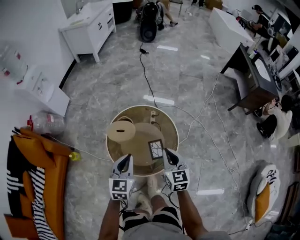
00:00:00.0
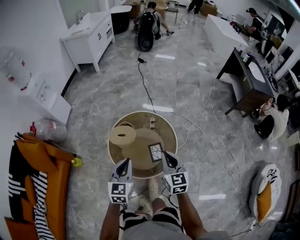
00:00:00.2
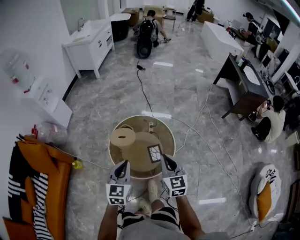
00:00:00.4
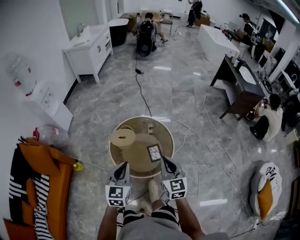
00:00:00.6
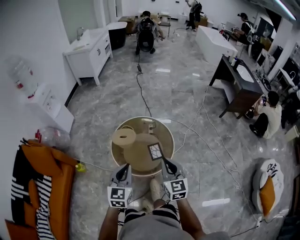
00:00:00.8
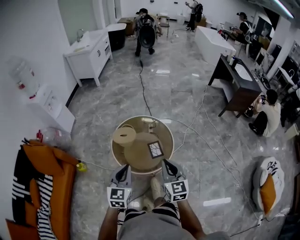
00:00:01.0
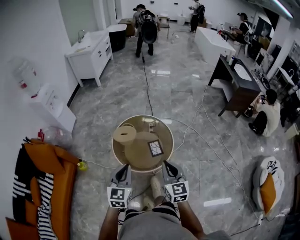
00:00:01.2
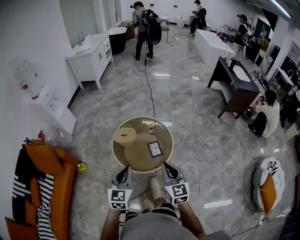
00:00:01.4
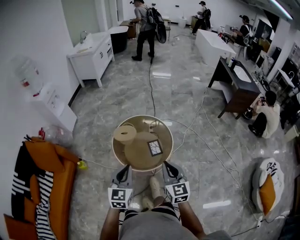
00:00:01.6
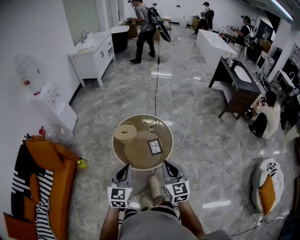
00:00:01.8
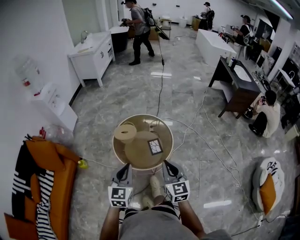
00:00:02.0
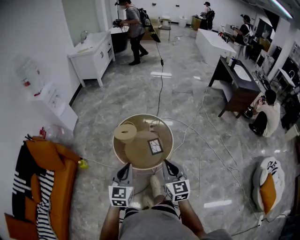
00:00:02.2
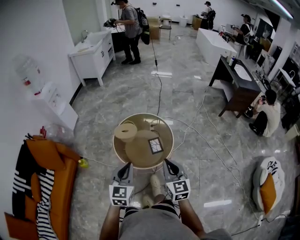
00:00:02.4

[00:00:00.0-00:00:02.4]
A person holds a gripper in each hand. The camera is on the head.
00:00:00.0 to 00:00:01.2: The grippers both shift backward and upward by approximately 25 cm.
00:00:01.2 to 00:00:02.4: There are only small adjustments of the grippers.

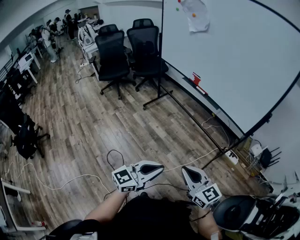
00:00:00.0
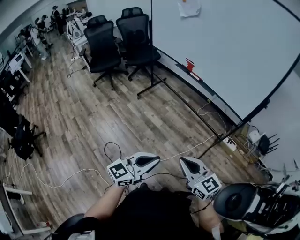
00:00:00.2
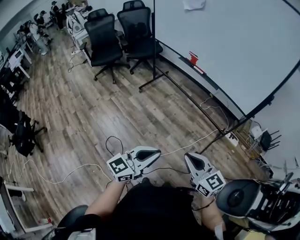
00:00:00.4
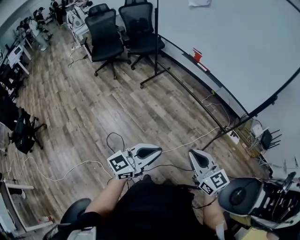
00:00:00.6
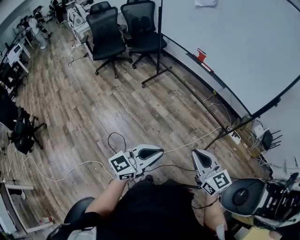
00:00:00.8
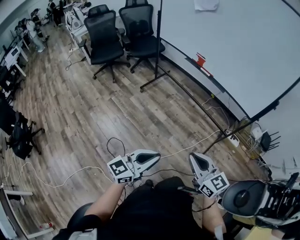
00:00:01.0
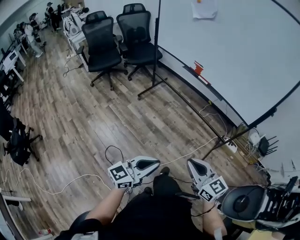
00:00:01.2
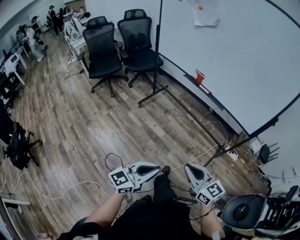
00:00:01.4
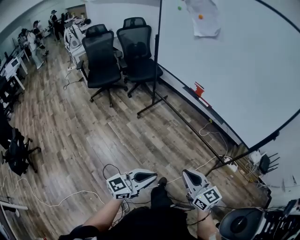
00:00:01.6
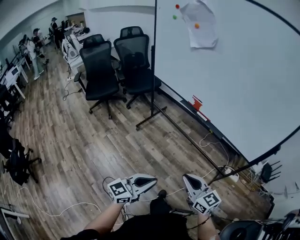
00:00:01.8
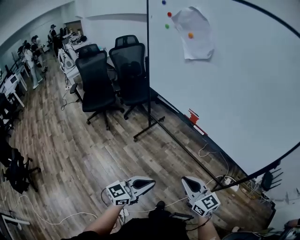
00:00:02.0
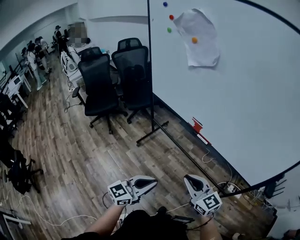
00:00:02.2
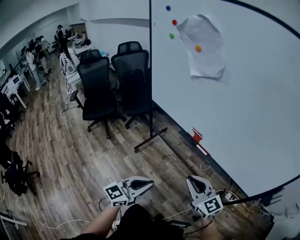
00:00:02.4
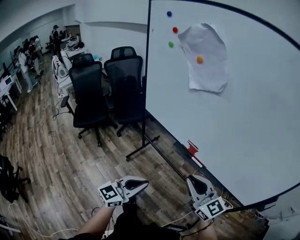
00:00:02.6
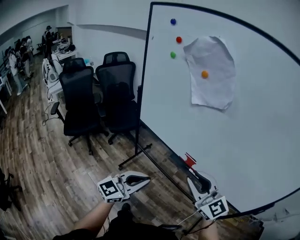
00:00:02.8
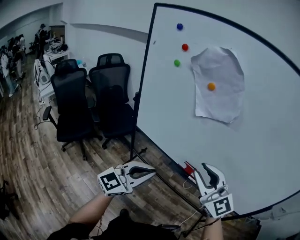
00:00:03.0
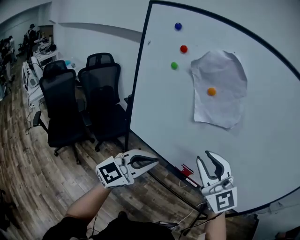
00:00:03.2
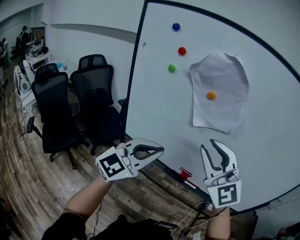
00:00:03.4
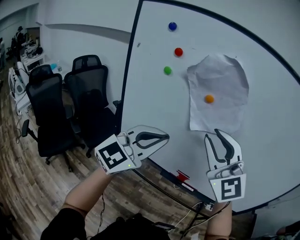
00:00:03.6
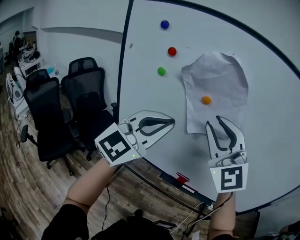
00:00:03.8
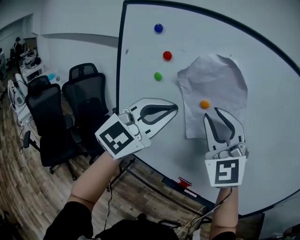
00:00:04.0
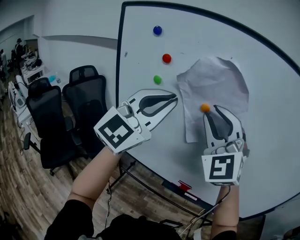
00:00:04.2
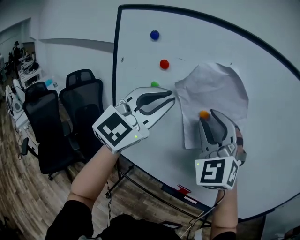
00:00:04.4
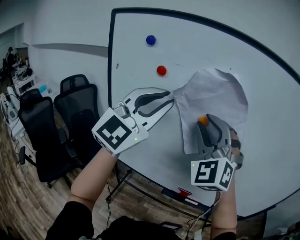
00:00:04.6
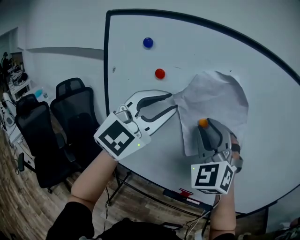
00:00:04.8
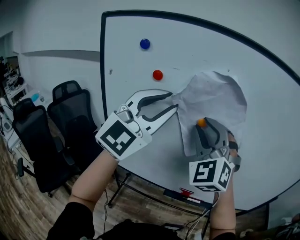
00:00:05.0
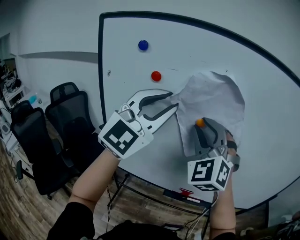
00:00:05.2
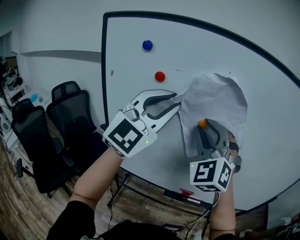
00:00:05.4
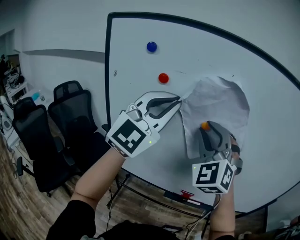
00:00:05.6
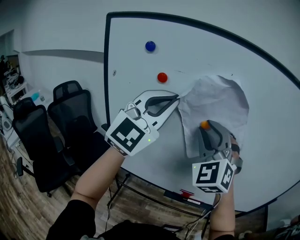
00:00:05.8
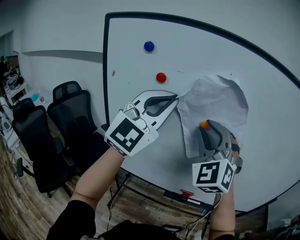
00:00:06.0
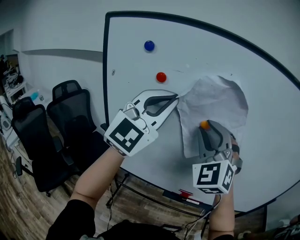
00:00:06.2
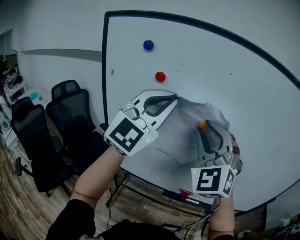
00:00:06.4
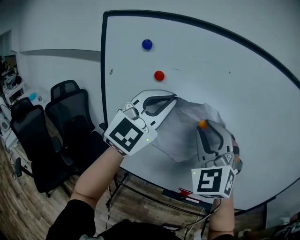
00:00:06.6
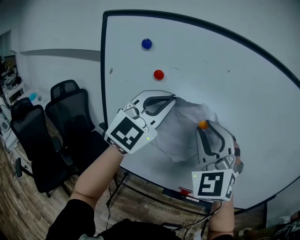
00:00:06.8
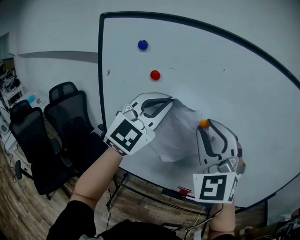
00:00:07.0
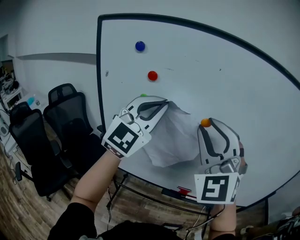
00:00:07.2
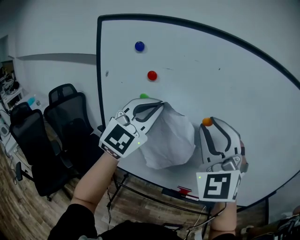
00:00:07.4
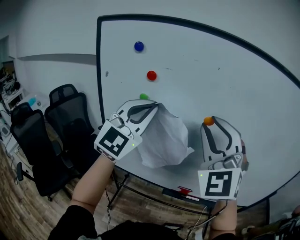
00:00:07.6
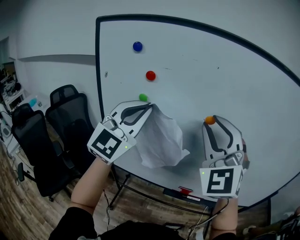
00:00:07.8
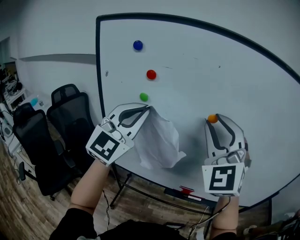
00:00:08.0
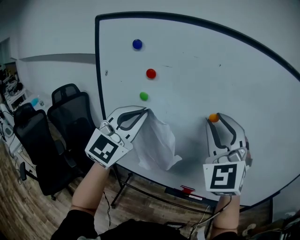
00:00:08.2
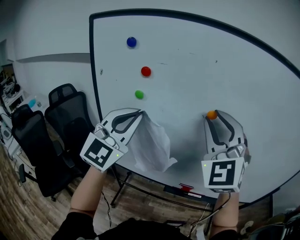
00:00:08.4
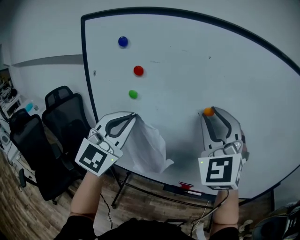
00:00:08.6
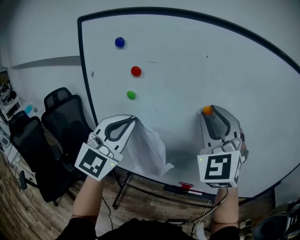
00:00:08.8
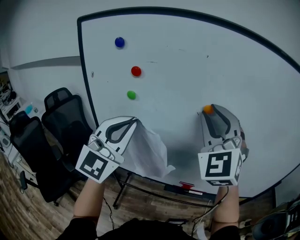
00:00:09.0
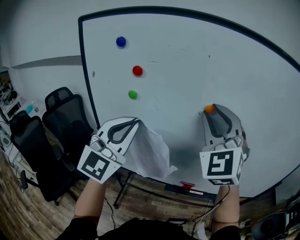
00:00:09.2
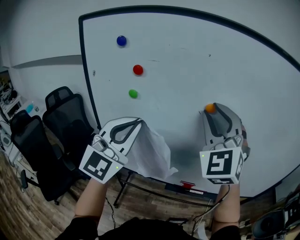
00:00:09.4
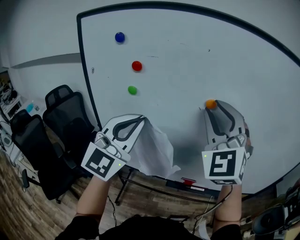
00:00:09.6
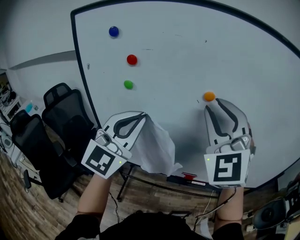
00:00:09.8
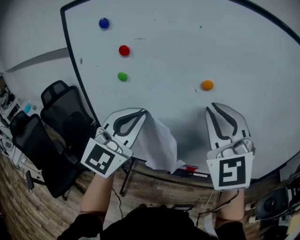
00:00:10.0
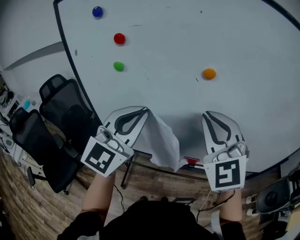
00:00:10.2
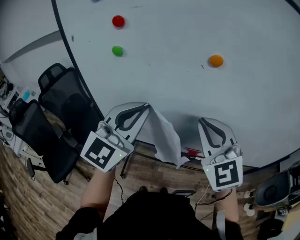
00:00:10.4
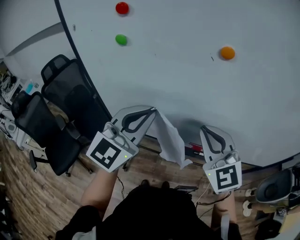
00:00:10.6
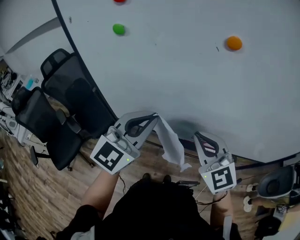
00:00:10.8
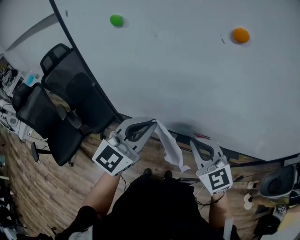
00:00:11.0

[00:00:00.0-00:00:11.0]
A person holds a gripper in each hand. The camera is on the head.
00:00:00.0 to 00:00:01.6: Both grippers travel together forward and to the left, roughly 20 cm.
00:00:01.6 to 00:00:03.2: The pair of grippers is taken forward, approximately 60 cm. The right gripper is displaced upward by some 30 cm, rolls counterclockwise, seen from behind, by some 40 degrees, and opens up. Meanwhile the left gripper rotates about 30 degrees.
00:00:03.2 to 00:00:04.8: The right gripper heads forward, upward and to the left, covering some 25 cm, and turns by roughly 50 degrees. The left gripper moves upward and forward, approximately 30 cm, changes its angle by about 30 degrees, and opens up.
00:00:04.8 to 00:00:06.2: The left gripper closes its fingers.
00:00:06.2 to 00:00:07.8: The right gripper shifts by some 5 cm. Meanwhile the left gripper moves about 5 cm.
00:00:07.8 to 00:00:09.4: The right gripper ends up about 5 cm from where it was.
00:00:09.4 to 00:00:11.0: The right gripper goes about 30 cm downward, rotates roughly 50 degrees, and closes up; the left gripper shifts approximately 20 cm downward, and changes its angle by approximately 30 degrees.

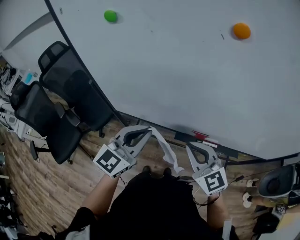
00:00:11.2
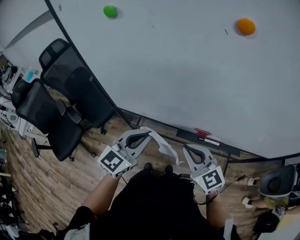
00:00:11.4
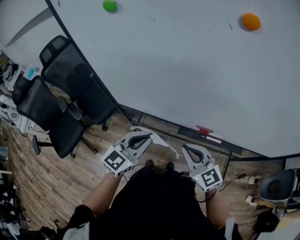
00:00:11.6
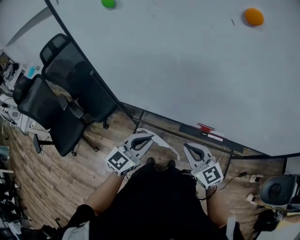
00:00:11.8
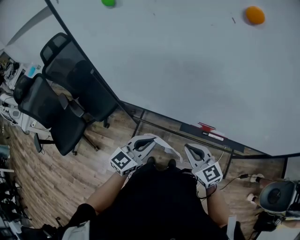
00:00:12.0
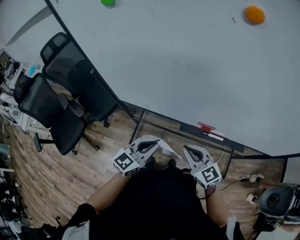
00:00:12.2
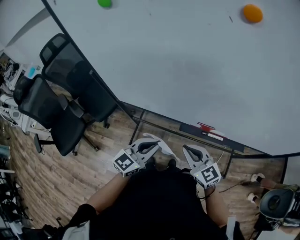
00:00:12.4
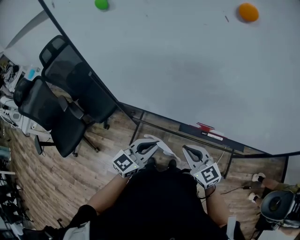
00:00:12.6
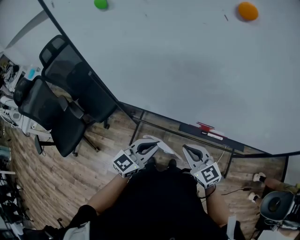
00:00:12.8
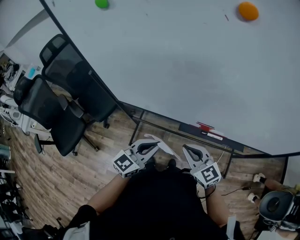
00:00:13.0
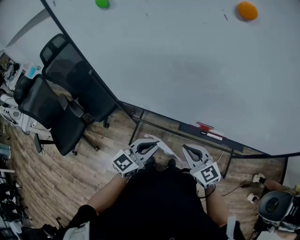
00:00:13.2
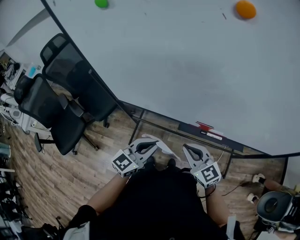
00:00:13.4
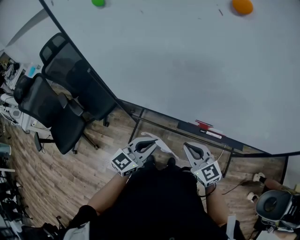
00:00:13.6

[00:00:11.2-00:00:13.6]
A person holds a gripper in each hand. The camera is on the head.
00:00:11.2 to 00:00:12.4: Both grippers travel together downward, some 15 cm.
00:00:12.4 to 00:00:13.6: Both grippers stay about where they are.

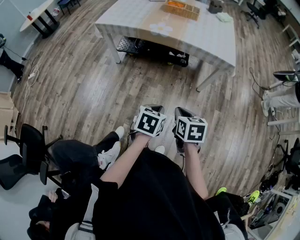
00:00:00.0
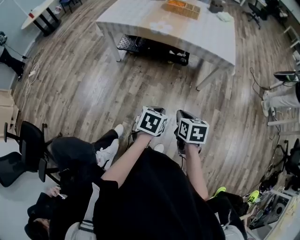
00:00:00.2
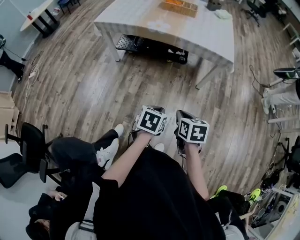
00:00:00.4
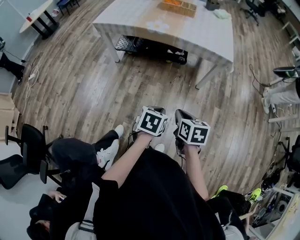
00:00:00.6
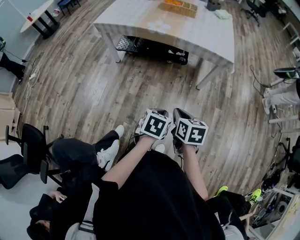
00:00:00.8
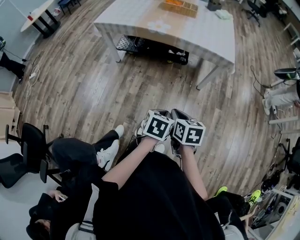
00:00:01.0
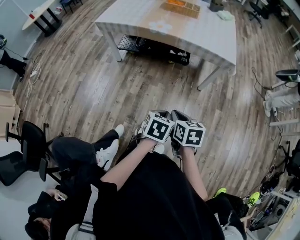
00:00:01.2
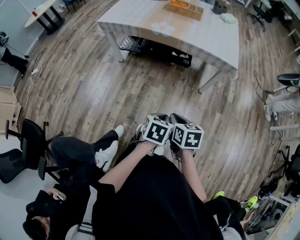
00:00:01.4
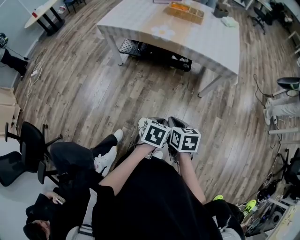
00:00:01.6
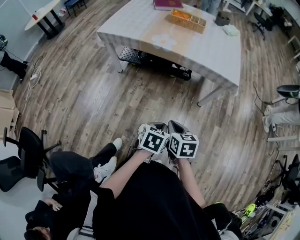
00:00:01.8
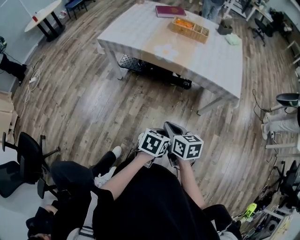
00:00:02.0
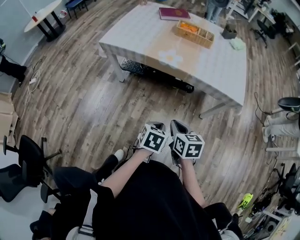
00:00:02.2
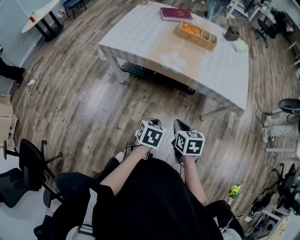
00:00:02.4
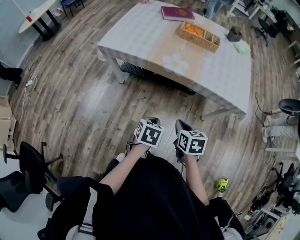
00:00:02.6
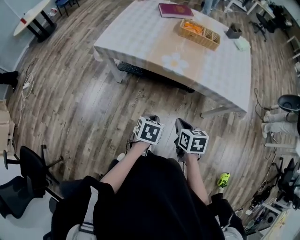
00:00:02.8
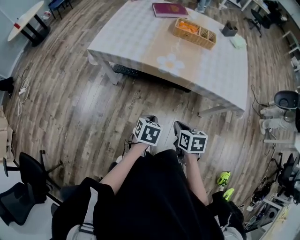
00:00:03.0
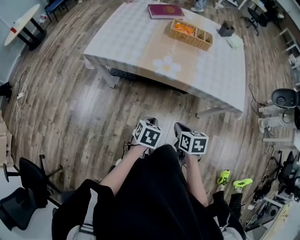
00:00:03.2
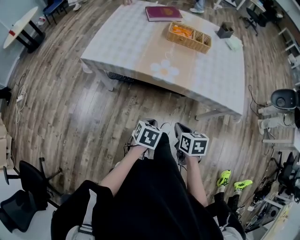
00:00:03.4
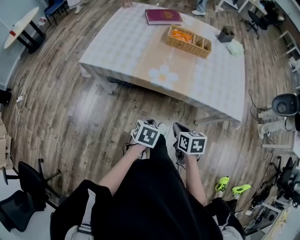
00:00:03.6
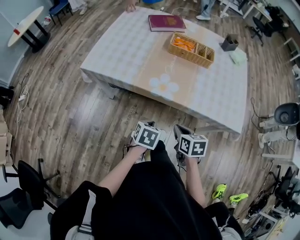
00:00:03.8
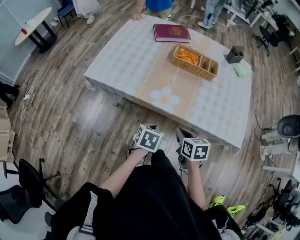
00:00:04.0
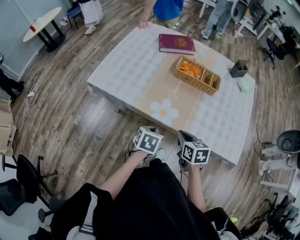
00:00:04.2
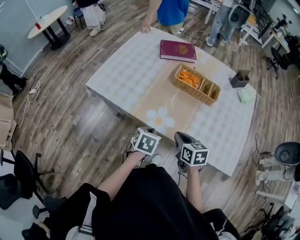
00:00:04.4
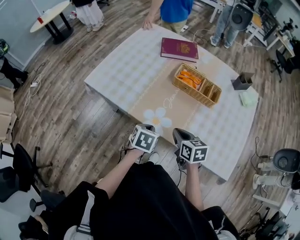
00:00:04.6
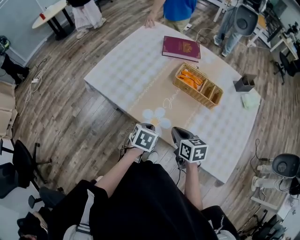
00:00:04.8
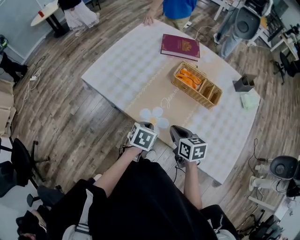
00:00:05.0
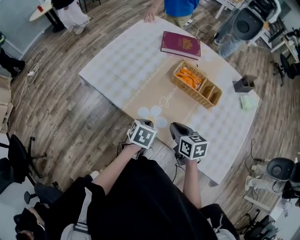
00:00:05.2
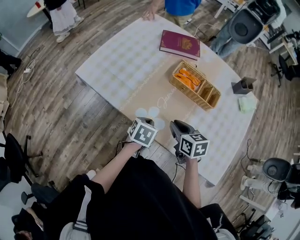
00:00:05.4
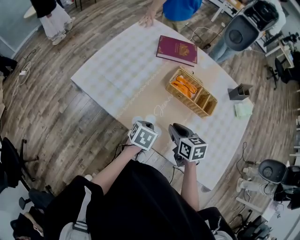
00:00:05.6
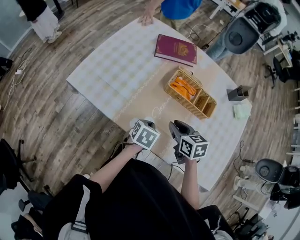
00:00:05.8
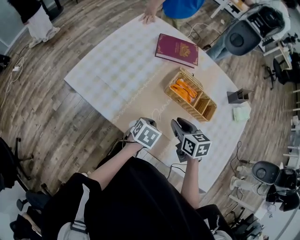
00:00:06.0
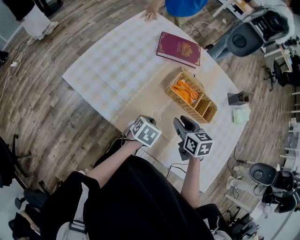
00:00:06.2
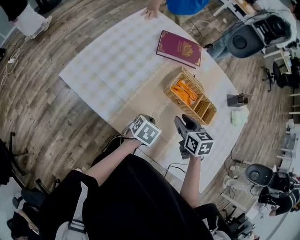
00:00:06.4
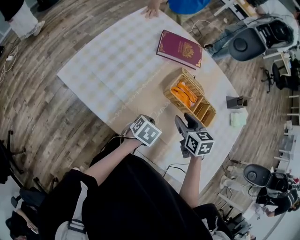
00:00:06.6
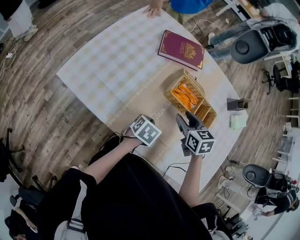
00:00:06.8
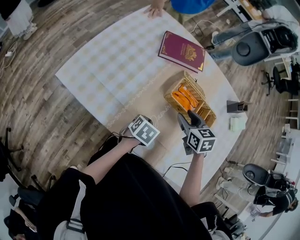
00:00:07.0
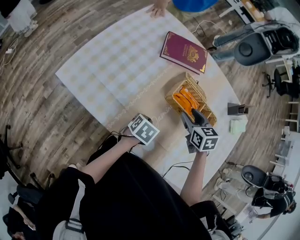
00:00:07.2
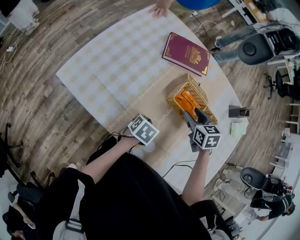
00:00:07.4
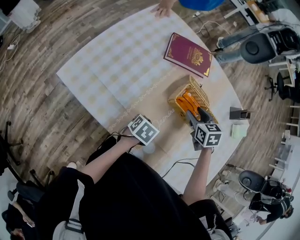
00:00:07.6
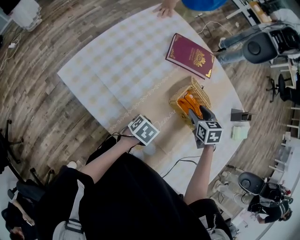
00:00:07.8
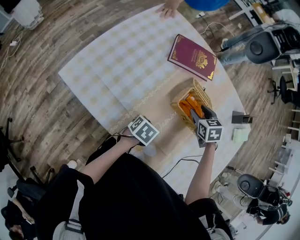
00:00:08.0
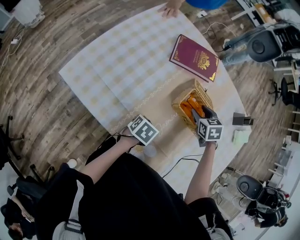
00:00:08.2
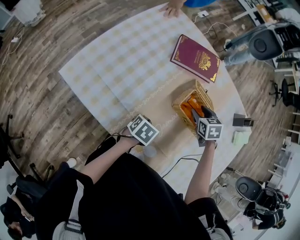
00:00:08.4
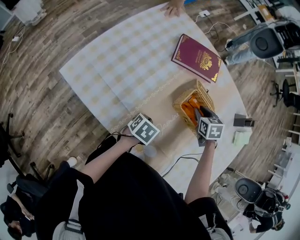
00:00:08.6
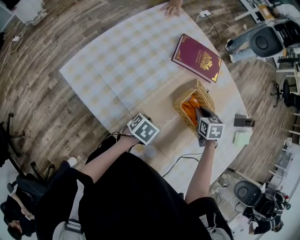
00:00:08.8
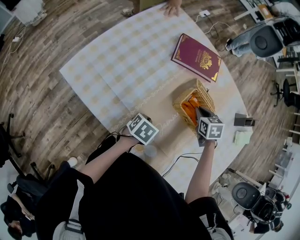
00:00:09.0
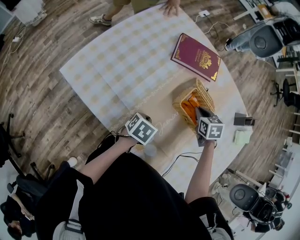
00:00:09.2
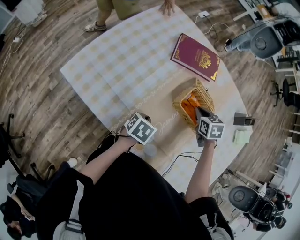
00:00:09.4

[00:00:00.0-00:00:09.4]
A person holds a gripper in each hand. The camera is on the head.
00:00:00.0 to 00:00:01.6: The left gripper changes place by some 5 cm.
00:00:01.6 to 00:00:03.2: The right gripper goes roughly 30 cm forward. The left gripper moves forward and to the left, some 35 cm.
00:00:03.2 to 00:00:04.8: The two grippers go about 30 cm forward. The right gripper rotates about 30 degrees.
00:00:04.8 to 00:00:06.2: Both grippers travel together forward, roughly 15 cm. The right gripper opens.
00:00:06.2 to 00:00:07.8: The left gripper goes some 5 cm downward, while the right gripper goes roughly 15 cm forward, turns by approximately 20 degrees, and opens.
00:00:07.8 to 00:00:09.4: The right gripper closes.
